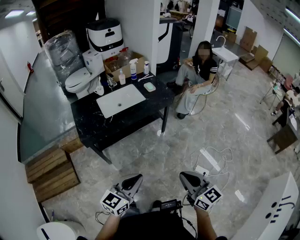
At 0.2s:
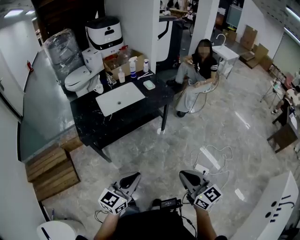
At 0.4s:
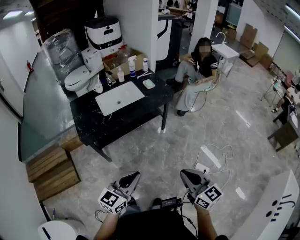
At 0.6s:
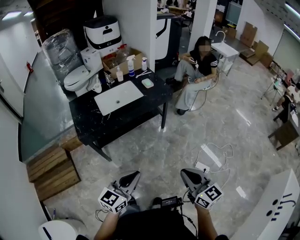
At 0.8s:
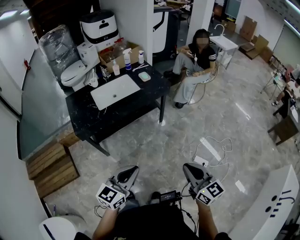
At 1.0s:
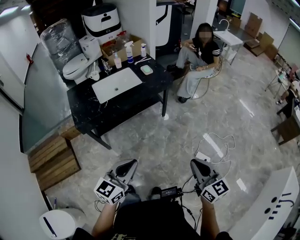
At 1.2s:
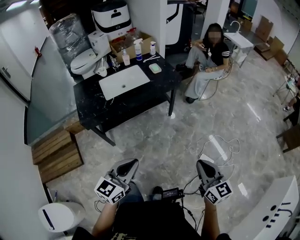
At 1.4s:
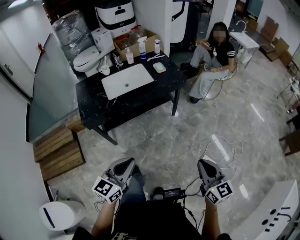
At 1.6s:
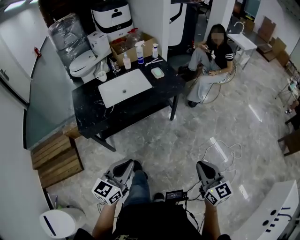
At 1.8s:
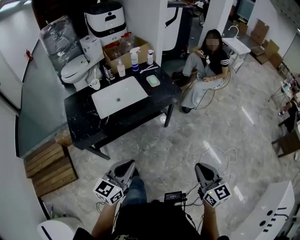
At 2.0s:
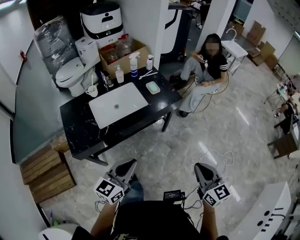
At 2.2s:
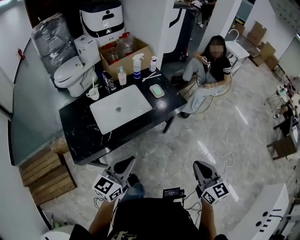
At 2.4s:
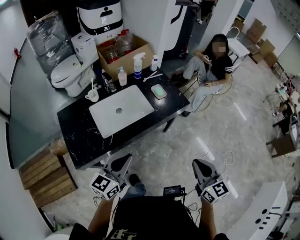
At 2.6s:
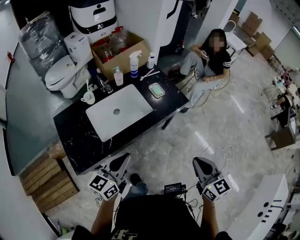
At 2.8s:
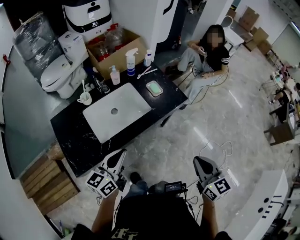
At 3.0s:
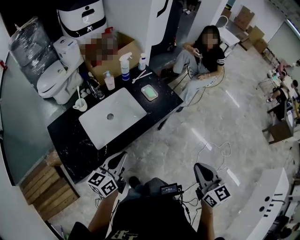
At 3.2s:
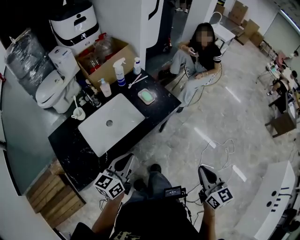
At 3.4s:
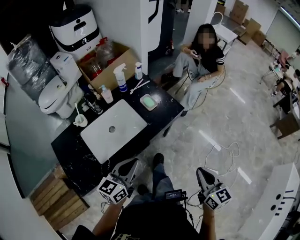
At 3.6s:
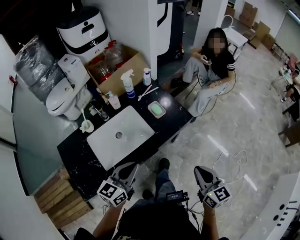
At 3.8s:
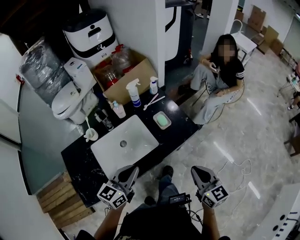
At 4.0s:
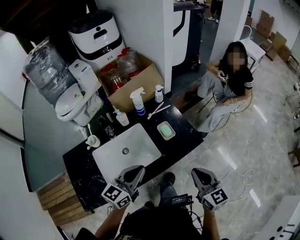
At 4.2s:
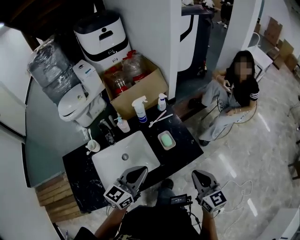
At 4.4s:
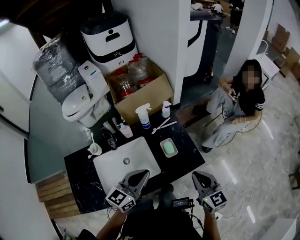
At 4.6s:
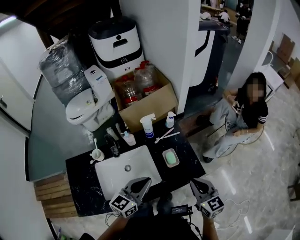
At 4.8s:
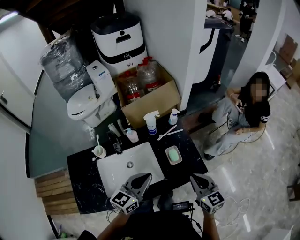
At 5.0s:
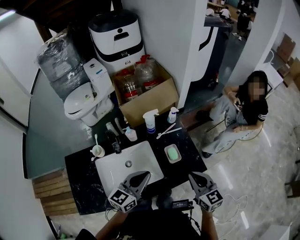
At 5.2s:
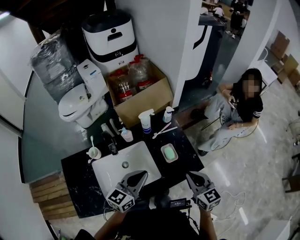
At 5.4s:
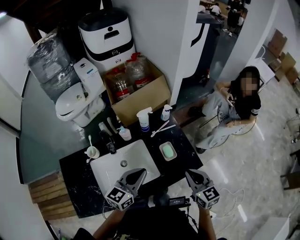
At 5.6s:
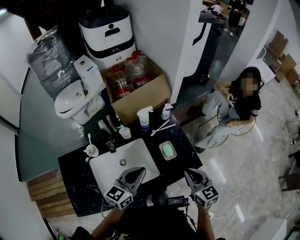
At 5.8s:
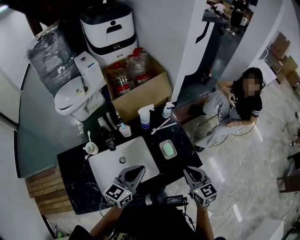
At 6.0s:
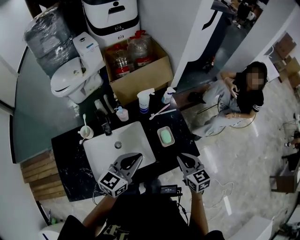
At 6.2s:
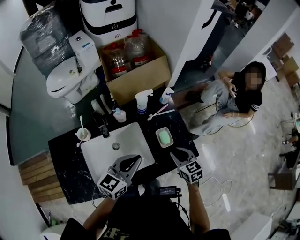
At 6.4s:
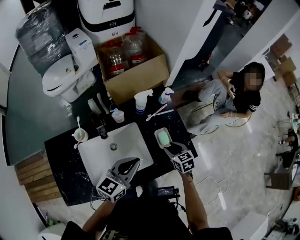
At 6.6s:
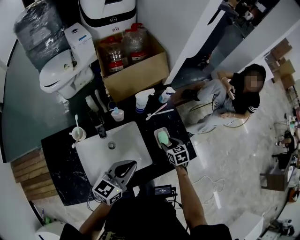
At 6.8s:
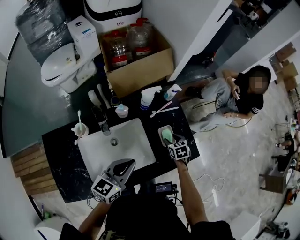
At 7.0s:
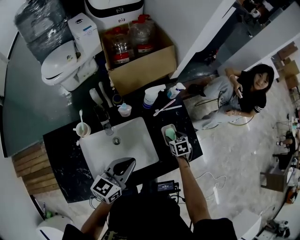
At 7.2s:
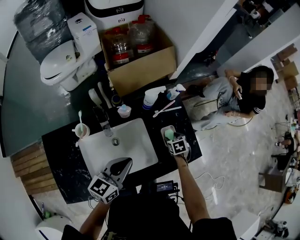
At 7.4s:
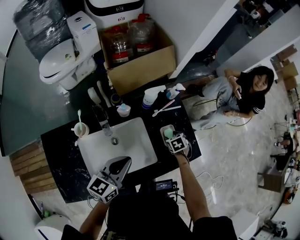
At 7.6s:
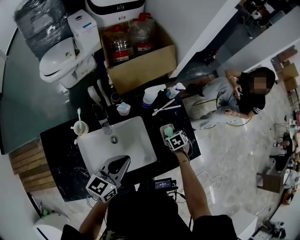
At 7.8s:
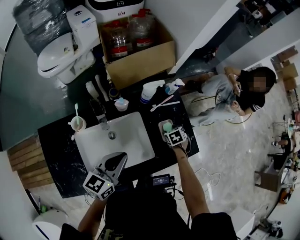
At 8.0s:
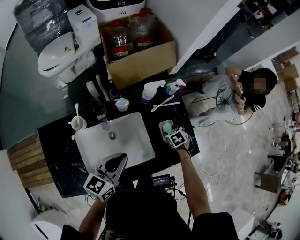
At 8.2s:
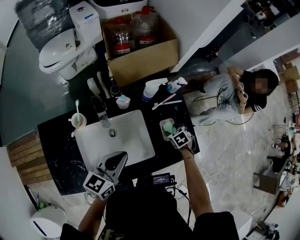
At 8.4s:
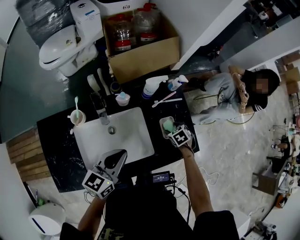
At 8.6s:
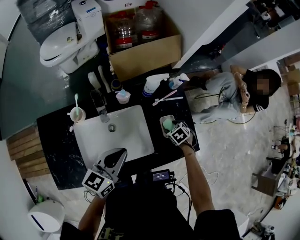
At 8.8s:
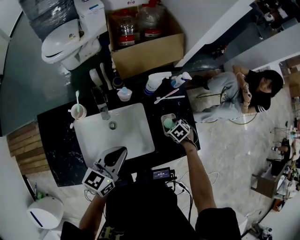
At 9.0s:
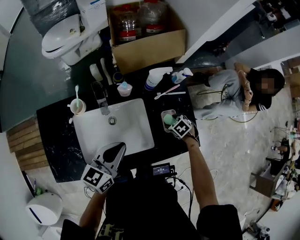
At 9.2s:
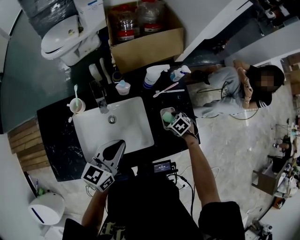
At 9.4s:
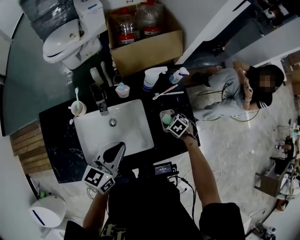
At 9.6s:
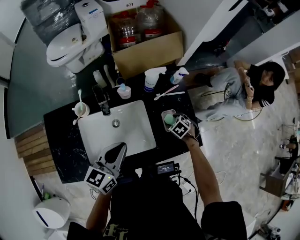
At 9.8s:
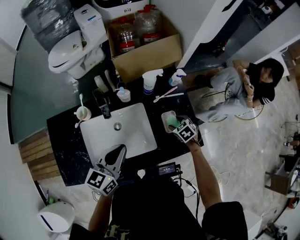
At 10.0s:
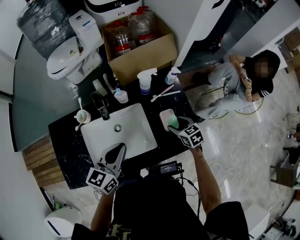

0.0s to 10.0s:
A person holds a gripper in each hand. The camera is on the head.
0.0s to 1.4s: The right gripper moves to the right and forward, roughly 15 cm; the left gripper shifts some 5 cm forward.
1.4s to 2.8s: The grippers both shift forward and to the left by about 40 cm. The left gripper turns by roughly 20 degrees.
2.8s to 4.2s: Both grippers move forward, about 30 cm.
4.2s to 5.8s: The two grippers go some 10 cm forward.
5.8s to 7.2s: The right gripper heads downward and forward, covering approximately 30 cm, tips its fingers downward by roughly 40 degrees, and opens up. The left gripper shifts roughly 10 cm to the left and downward.
7.2s to 8.6s: The right gripper turns by approximately 30 degrees.
8.6s to 10.0s: The right gripper goes some 10 cm upward, and tips its fingers upward by roughly 30 degrees.

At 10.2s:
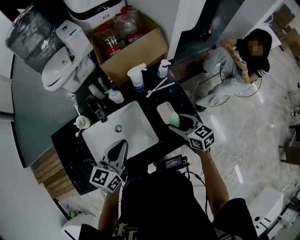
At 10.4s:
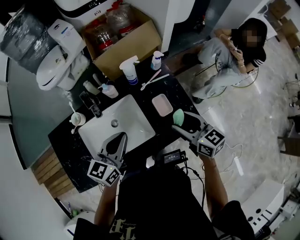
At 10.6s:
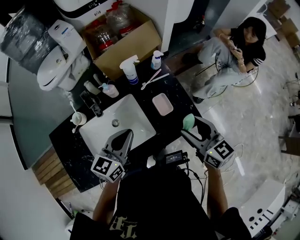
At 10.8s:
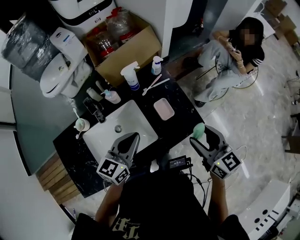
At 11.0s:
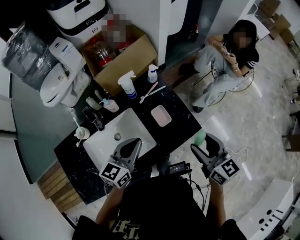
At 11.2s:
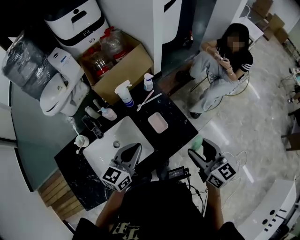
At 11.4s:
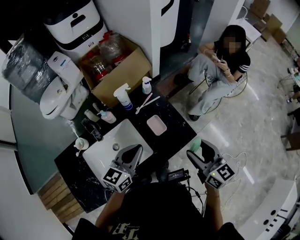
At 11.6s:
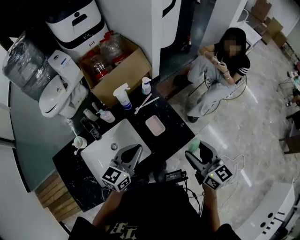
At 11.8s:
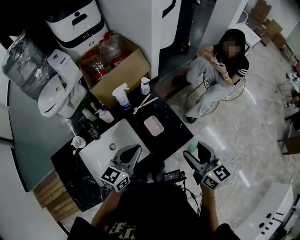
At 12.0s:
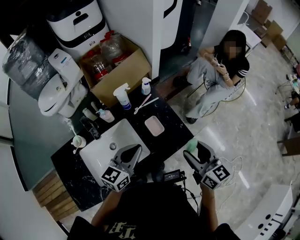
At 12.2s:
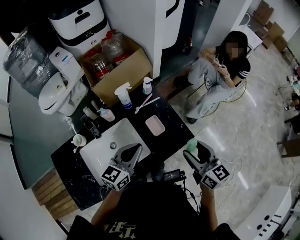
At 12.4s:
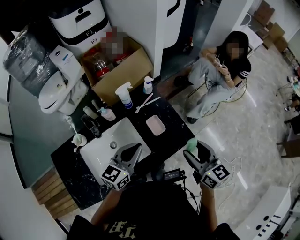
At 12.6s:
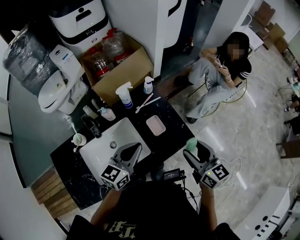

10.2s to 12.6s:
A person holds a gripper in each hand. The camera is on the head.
10.2s to 11.4s: The right gripper travels upward, to the right and backward by roughly 20 cm, and changes its angle by some 30 degrees, while the left gripper is displaced to the right by approximately 10 cm.
11.4s to 12.6s: The grippers stay close to where they were, moving slightly.

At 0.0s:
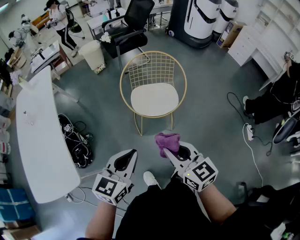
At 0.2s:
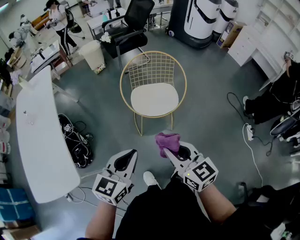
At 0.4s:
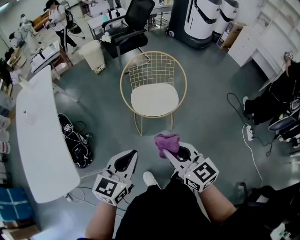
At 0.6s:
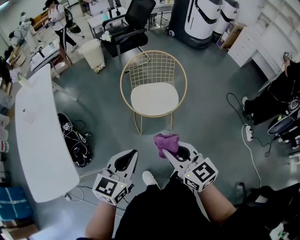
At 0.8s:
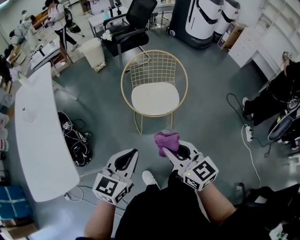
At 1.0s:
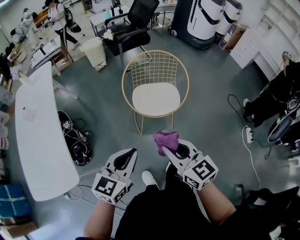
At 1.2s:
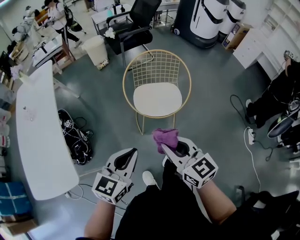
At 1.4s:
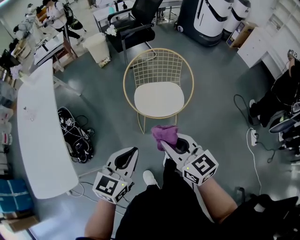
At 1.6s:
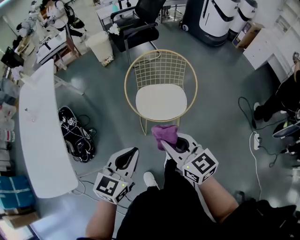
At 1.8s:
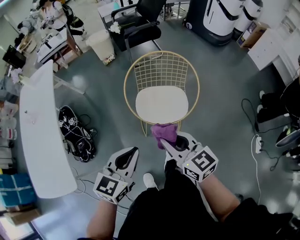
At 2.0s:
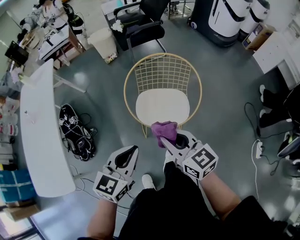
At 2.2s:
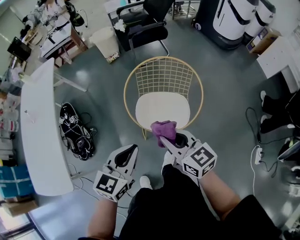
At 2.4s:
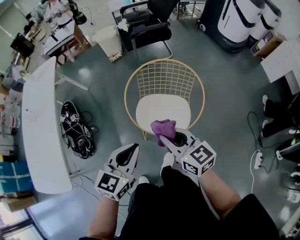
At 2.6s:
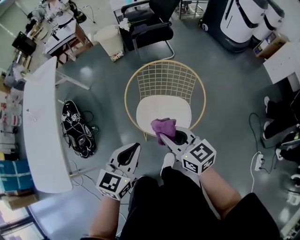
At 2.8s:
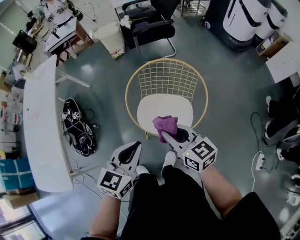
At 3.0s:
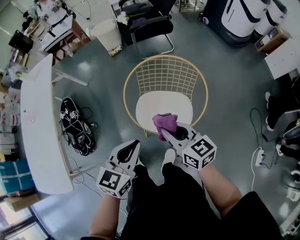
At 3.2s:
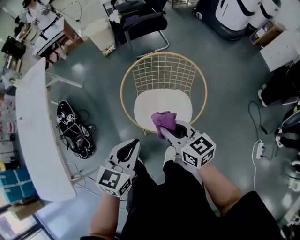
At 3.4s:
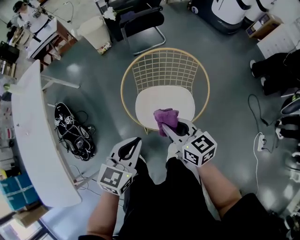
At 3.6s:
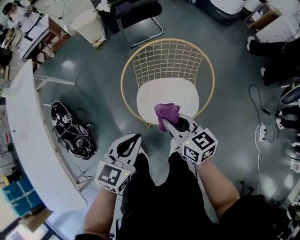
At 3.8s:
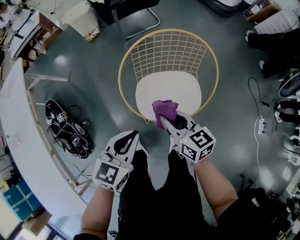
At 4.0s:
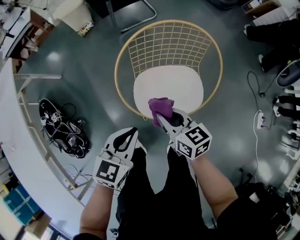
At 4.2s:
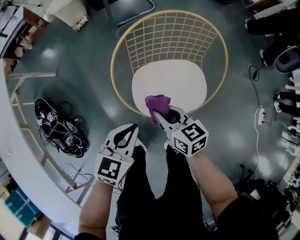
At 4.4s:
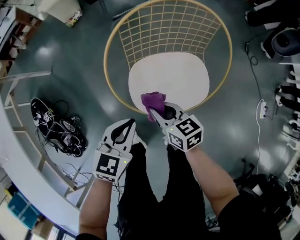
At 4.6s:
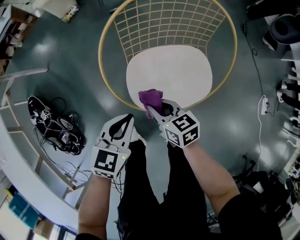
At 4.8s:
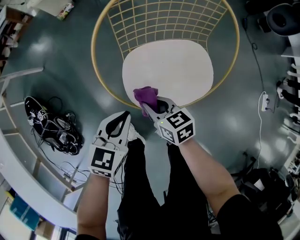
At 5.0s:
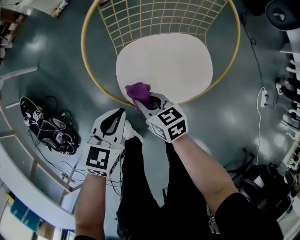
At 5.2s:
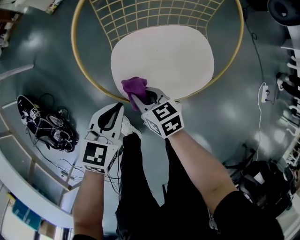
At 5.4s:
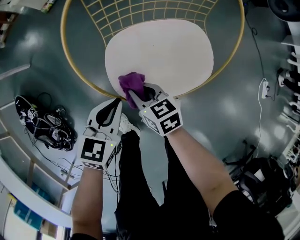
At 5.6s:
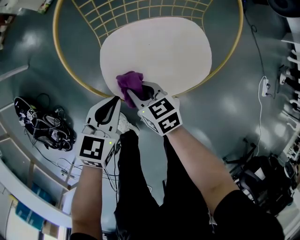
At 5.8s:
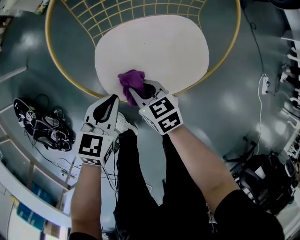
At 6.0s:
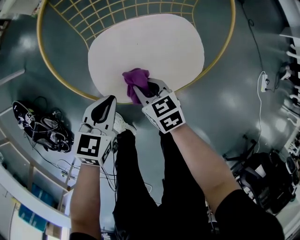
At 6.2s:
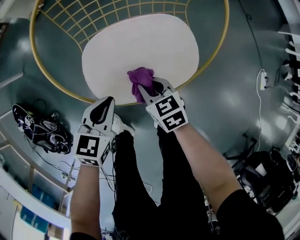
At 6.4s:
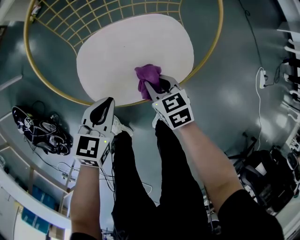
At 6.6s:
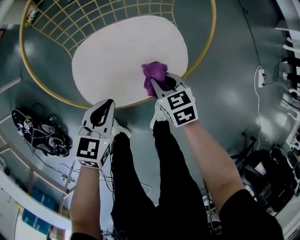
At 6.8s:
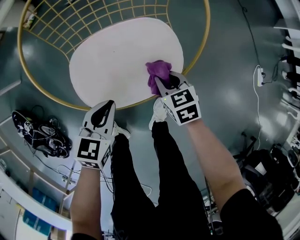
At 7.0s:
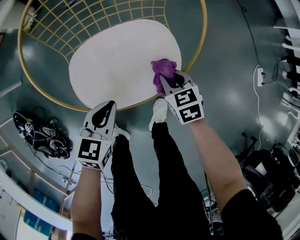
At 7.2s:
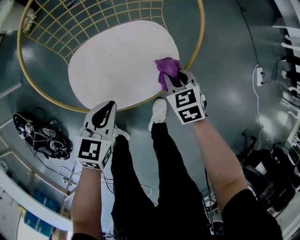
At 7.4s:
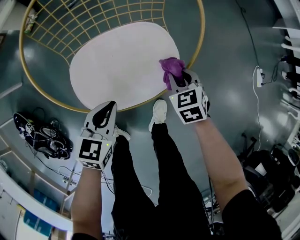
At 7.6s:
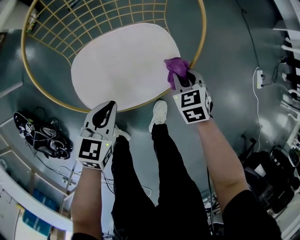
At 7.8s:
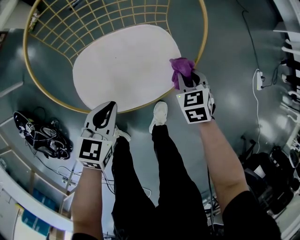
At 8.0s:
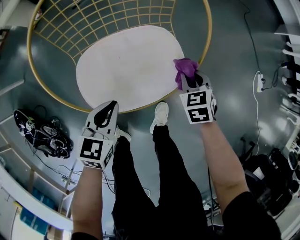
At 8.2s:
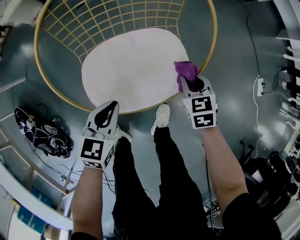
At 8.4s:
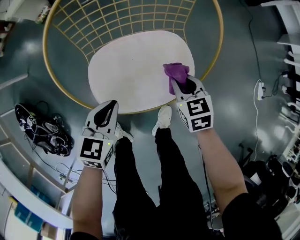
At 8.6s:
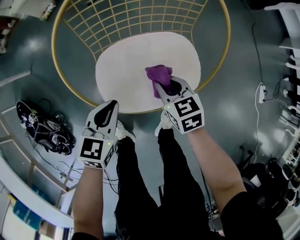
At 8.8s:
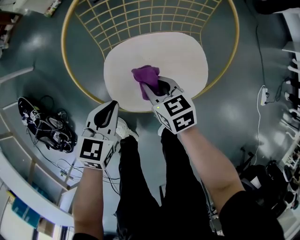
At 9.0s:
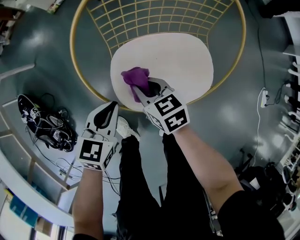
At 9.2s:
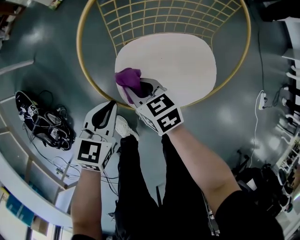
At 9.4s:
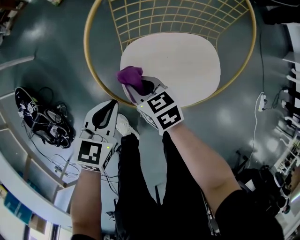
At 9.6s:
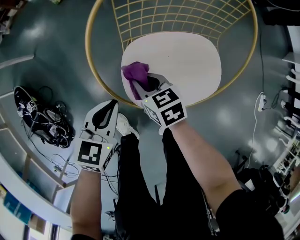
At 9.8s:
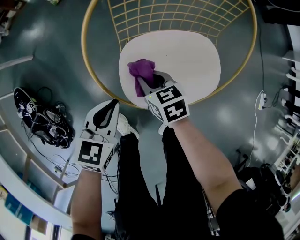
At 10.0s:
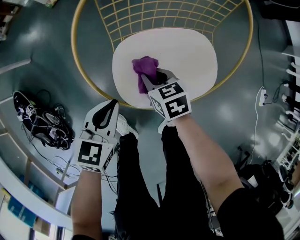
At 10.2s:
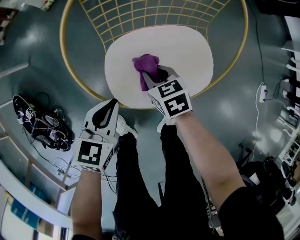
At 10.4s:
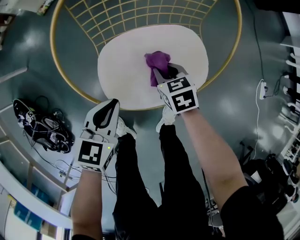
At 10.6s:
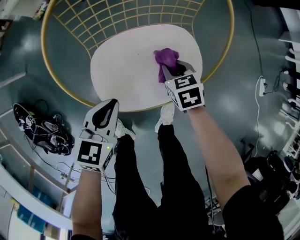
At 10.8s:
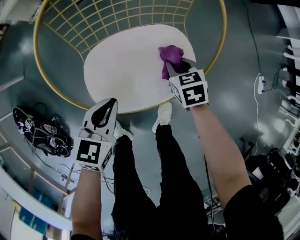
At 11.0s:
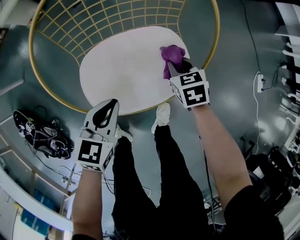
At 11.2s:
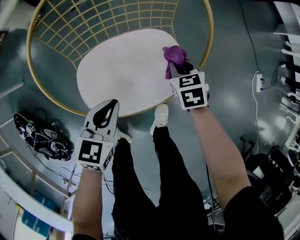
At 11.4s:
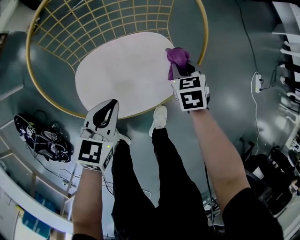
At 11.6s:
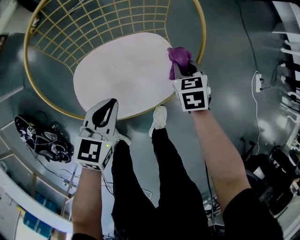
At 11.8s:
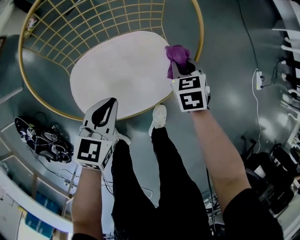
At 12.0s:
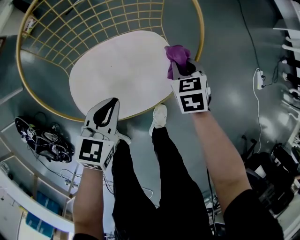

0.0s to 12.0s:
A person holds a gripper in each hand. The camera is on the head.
0.0s to 1.6s: The grippers both shift forward by about 10 cm.
1.6s to 3.0s: The left gripper travels forward and to the right by roughly 20 cm. Meanwhile the right gripper moves forward, downward and to the right, some 25 cm.
3.0s to 4.4s: The left gripper is displaced downward and forward by roughly 25 cm, and rotates roughly 20 degrees. The right gripper is displaced downward by approximately 30 cm, and rotates approximately 20 degrees.
4.4s to 6.0s: Both grippers move downward, about 15 cm.
6.0s to 7.6s: The left gripper heads to the right, covering some 5 cm; the right gripper travels to the right by roughly 20 cm, and swivels approximately 30 degrees.
7.6s to 9.0s: The left gripper changes place by some 10 cm. The right gripper shifts by approximately 30 cm, and rotates approximately 30 degrees.
9.0s to 10.4s: The right gripper goes roughly 15 cm to the right and downward.
10.4s to 12.0s: The left gripper heads to the right and forward, covering roughly 10 cm. The right gripper shifts about 20 cm to the right and forward.
